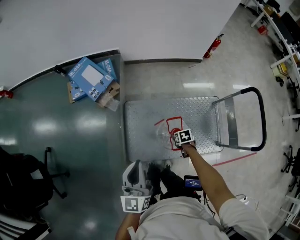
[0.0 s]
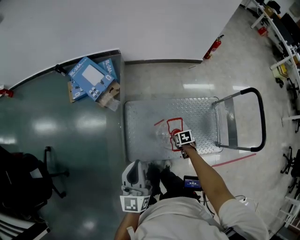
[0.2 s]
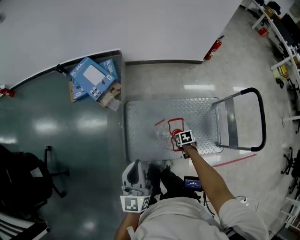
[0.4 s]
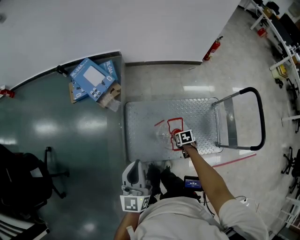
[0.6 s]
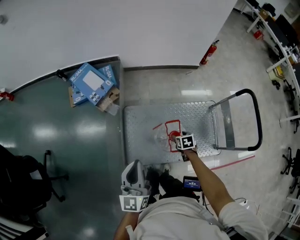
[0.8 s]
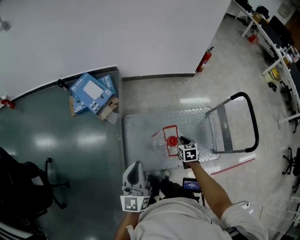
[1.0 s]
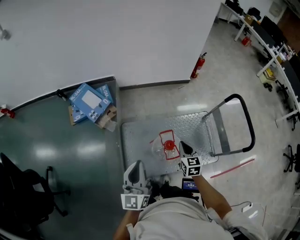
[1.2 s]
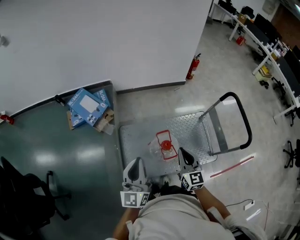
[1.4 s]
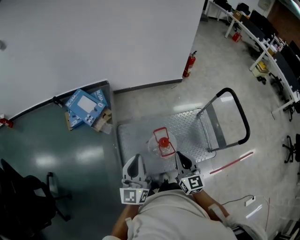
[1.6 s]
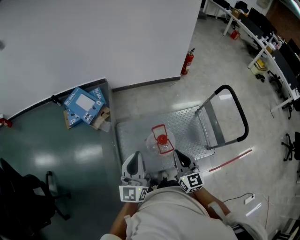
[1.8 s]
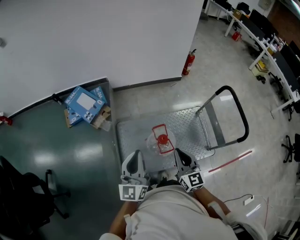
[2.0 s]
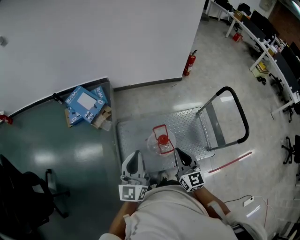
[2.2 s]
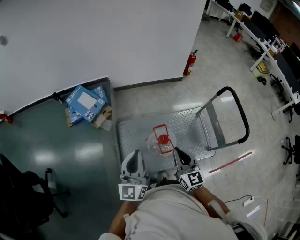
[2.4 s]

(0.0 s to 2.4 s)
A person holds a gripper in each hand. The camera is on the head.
0.0 s - 1.2 s: The left gripper moves roughly 5 cm. The right gripper is displaced upward by roughly 25 cm, points its fingers about 40 degrees further upward, and closes its fingers.
1.2 s - 2.4 s: The right gripper heads upward and backward, covering some 15 cm, and changes its angle by roughly 20 degrees.

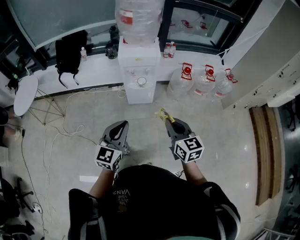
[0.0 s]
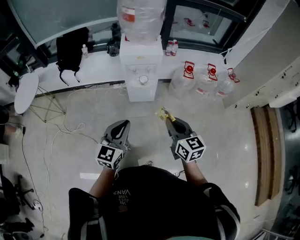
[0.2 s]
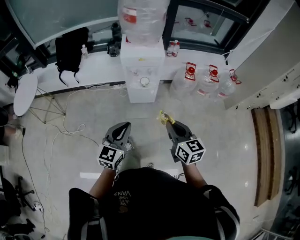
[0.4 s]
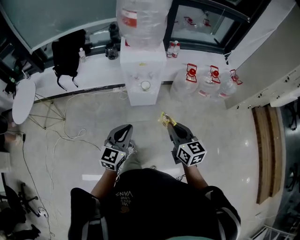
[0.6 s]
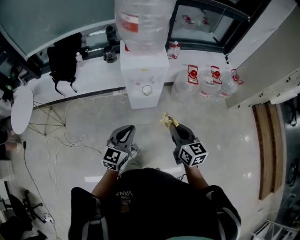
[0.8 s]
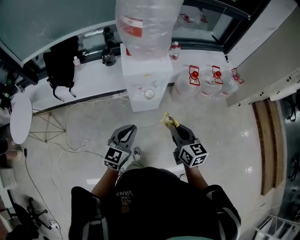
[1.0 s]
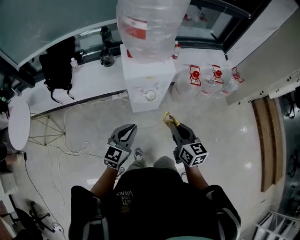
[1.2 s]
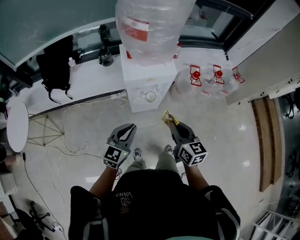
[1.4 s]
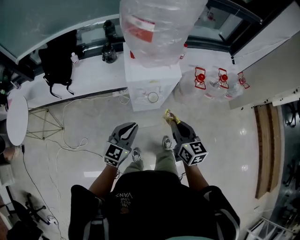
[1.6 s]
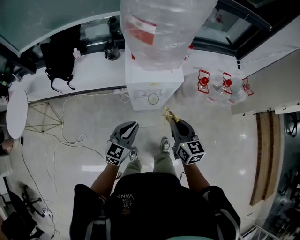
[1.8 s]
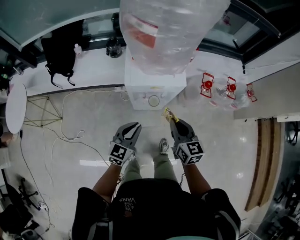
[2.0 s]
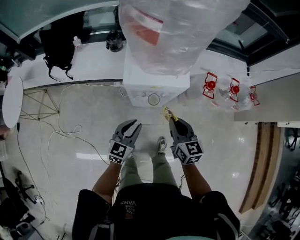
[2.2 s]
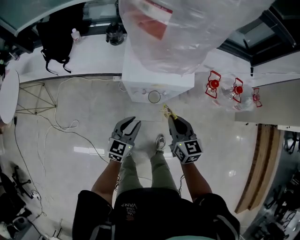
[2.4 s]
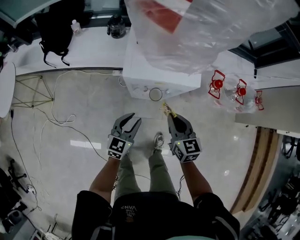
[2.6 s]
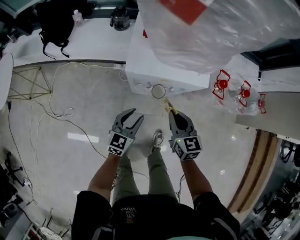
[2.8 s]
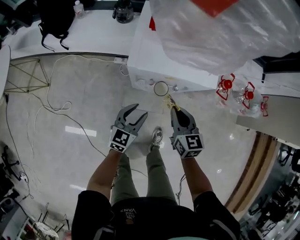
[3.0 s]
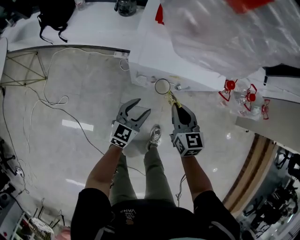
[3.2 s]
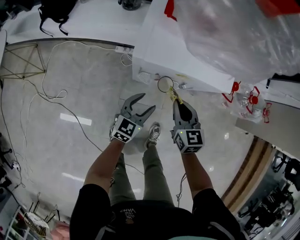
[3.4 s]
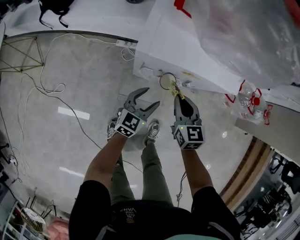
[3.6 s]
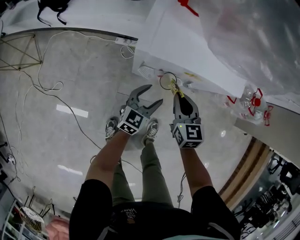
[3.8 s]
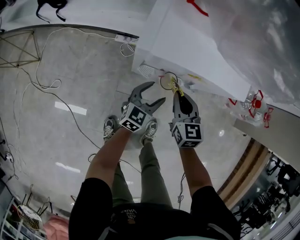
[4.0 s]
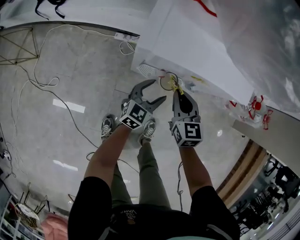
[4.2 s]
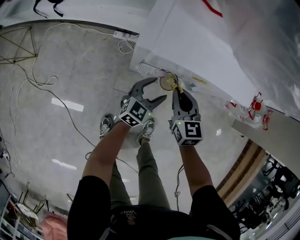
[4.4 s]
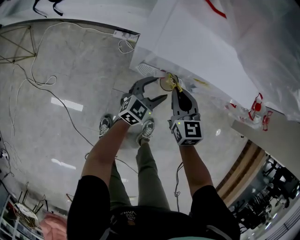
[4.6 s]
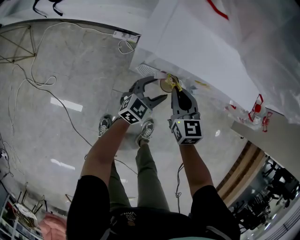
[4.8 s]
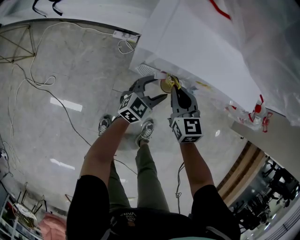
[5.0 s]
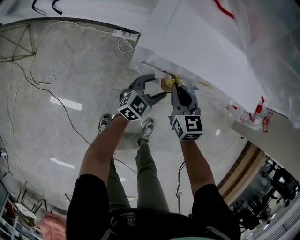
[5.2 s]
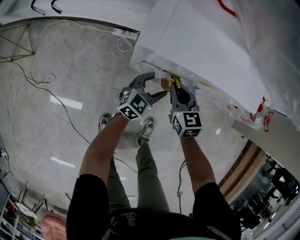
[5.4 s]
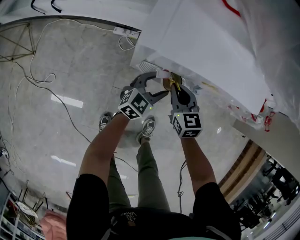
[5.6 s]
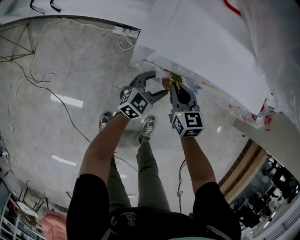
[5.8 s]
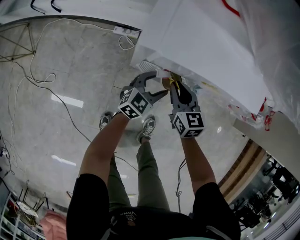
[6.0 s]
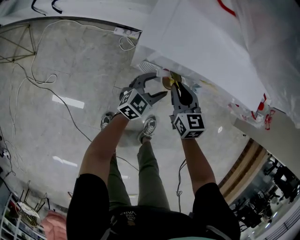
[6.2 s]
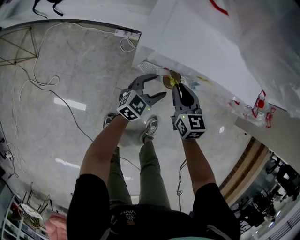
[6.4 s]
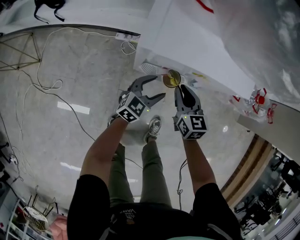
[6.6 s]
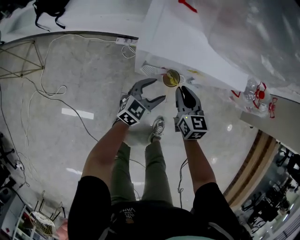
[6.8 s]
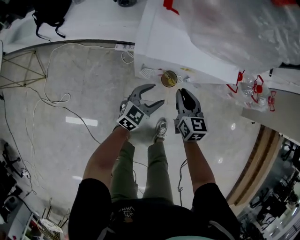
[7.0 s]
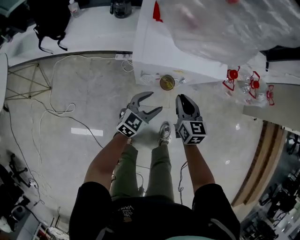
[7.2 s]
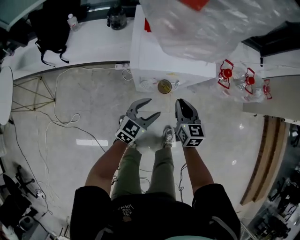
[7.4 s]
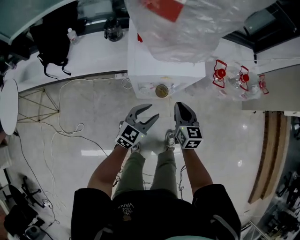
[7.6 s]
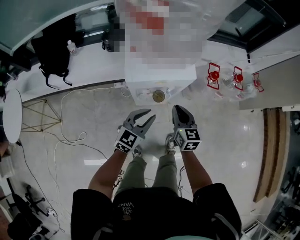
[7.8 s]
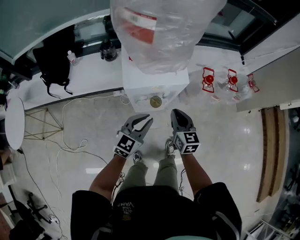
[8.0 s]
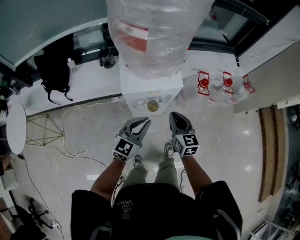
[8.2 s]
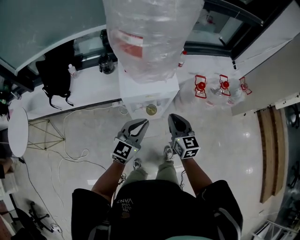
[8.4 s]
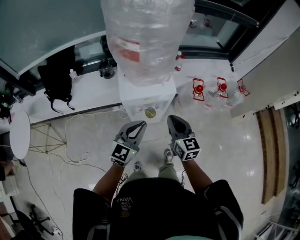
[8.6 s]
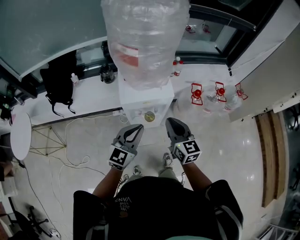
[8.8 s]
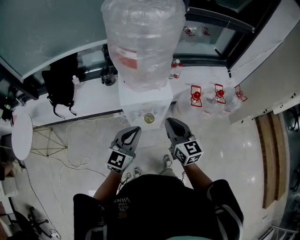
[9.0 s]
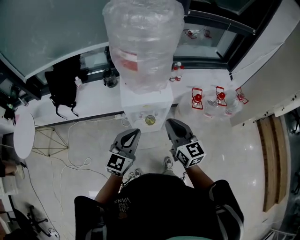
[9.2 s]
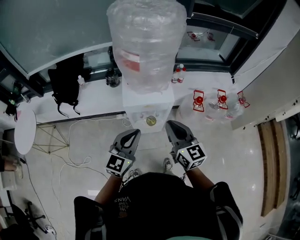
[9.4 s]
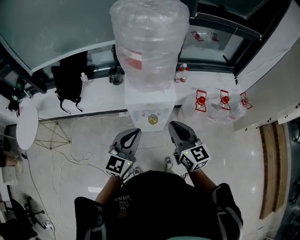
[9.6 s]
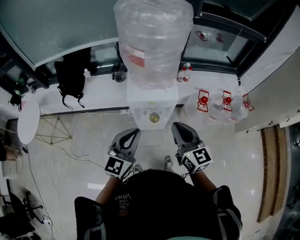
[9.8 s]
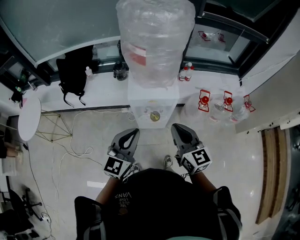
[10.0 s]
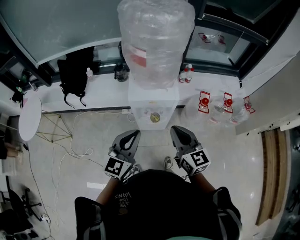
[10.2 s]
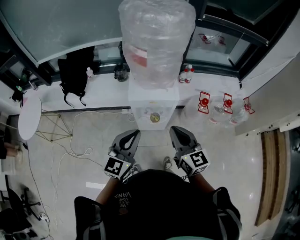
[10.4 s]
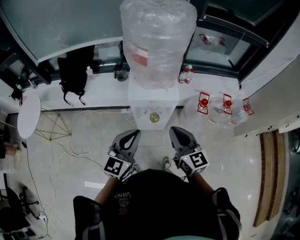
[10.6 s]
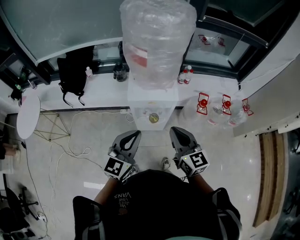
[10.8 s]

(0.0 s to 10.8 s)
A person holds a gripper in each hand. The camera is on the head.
0.0 s - 1.6 s: The left gripper shifts roughly 35 cm forward. Meanwhile the right gripper shifts roughly 35 cm forward and to the left.
1.6 s - 3.0 s: Both grippers move downward and forward, some 30 cm. The left gripper opens.
3.0 s - 4.6 s: Both grippers travel together downward and forward, some 15 cm. The left gripper opens its fingers.
6.2 s - 7.8 s: The grippers both shift upward by some 30 cm. The right gripper changes its angle by some 30 degrees. Meanwhile the left gripper closes its fingers.
7.8 s - 9.2 s: The two grippers go approximately 25 cm upward.
9.2 s - 10.8 s: The right gripper ends up roughly 5 cm from where it was, while the left gripper changes place by about 5 cm.

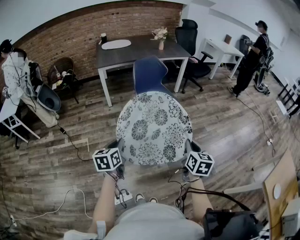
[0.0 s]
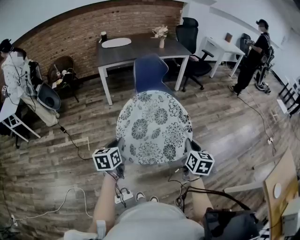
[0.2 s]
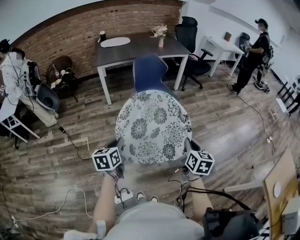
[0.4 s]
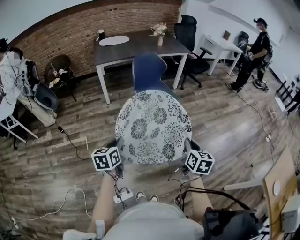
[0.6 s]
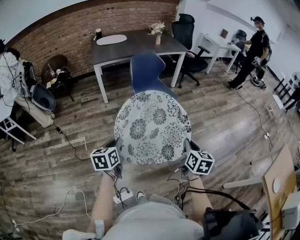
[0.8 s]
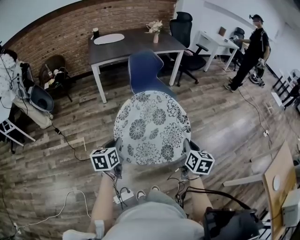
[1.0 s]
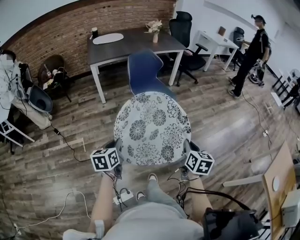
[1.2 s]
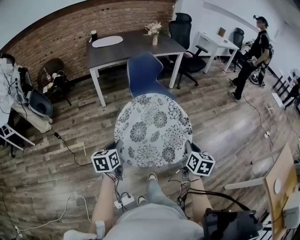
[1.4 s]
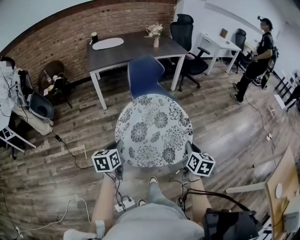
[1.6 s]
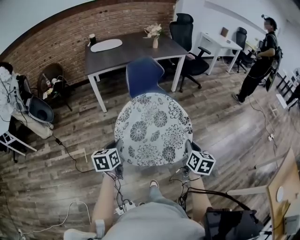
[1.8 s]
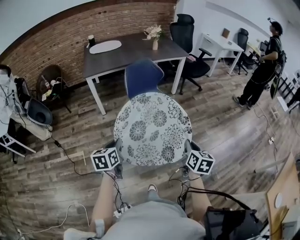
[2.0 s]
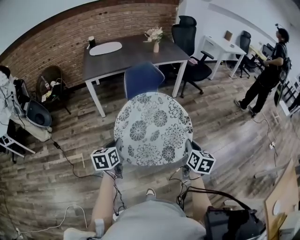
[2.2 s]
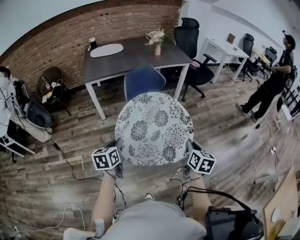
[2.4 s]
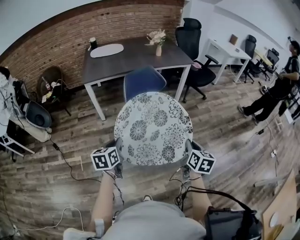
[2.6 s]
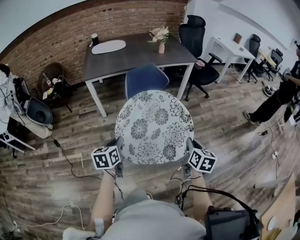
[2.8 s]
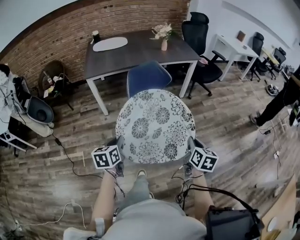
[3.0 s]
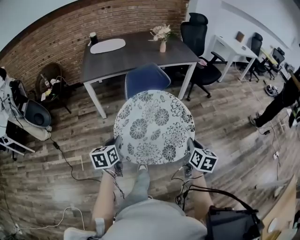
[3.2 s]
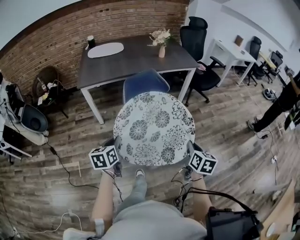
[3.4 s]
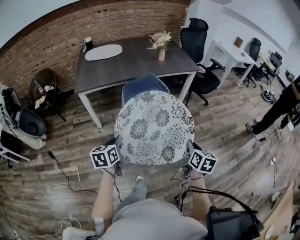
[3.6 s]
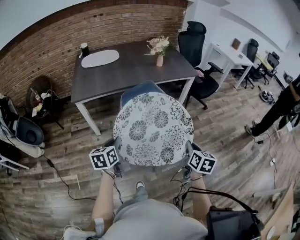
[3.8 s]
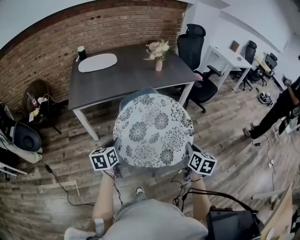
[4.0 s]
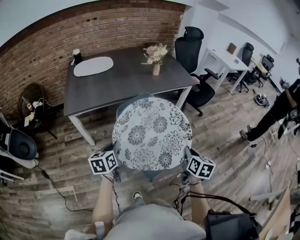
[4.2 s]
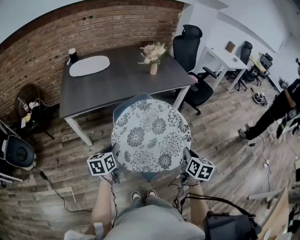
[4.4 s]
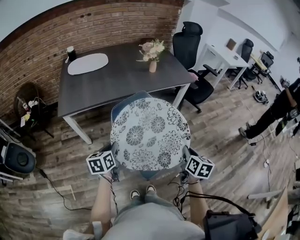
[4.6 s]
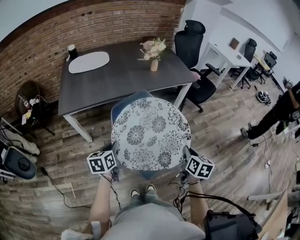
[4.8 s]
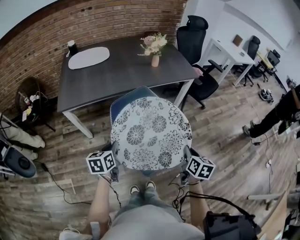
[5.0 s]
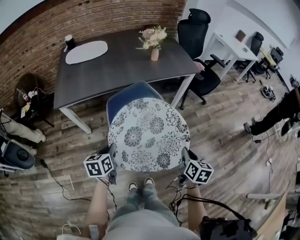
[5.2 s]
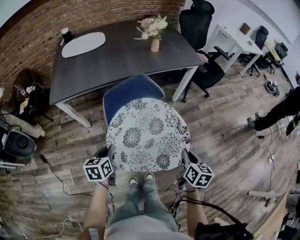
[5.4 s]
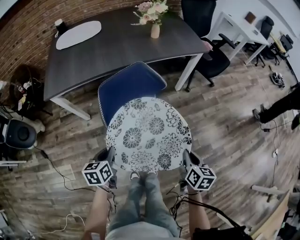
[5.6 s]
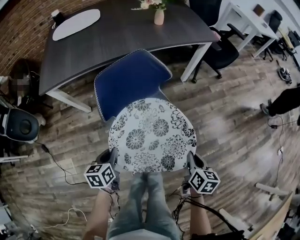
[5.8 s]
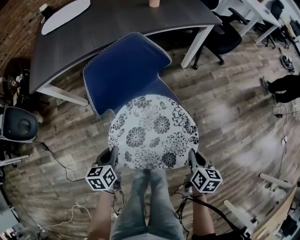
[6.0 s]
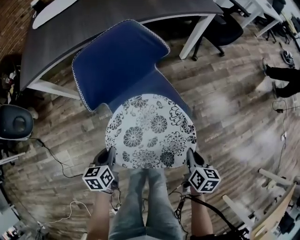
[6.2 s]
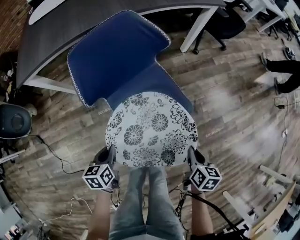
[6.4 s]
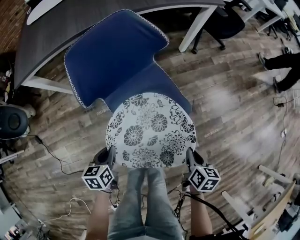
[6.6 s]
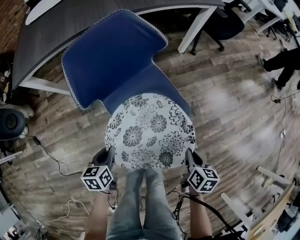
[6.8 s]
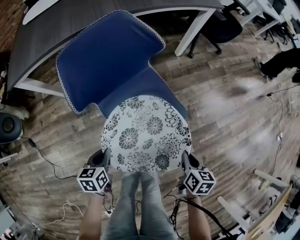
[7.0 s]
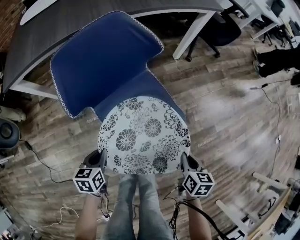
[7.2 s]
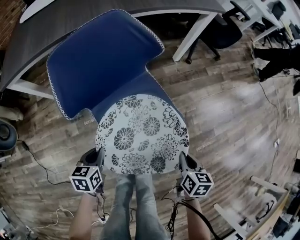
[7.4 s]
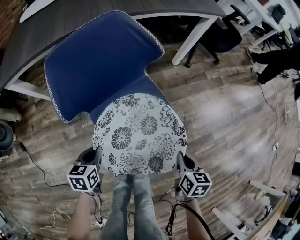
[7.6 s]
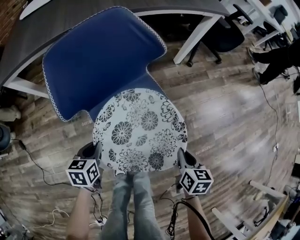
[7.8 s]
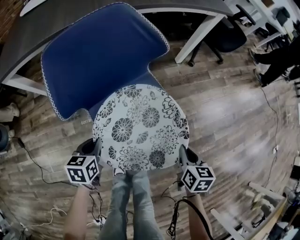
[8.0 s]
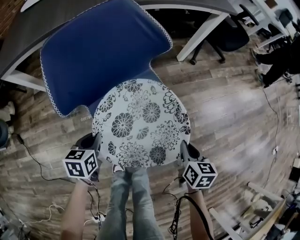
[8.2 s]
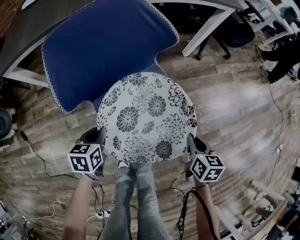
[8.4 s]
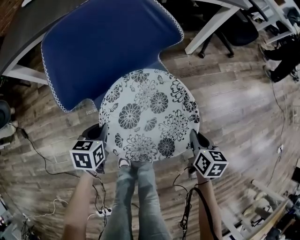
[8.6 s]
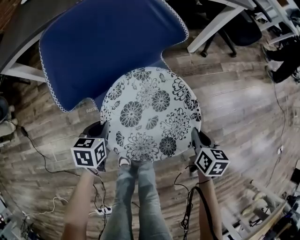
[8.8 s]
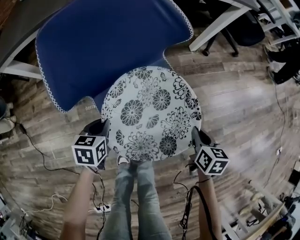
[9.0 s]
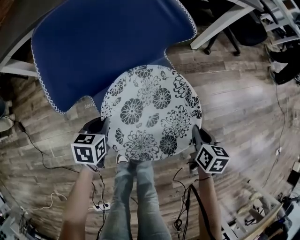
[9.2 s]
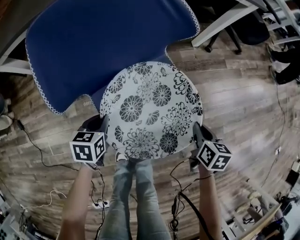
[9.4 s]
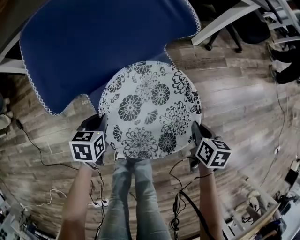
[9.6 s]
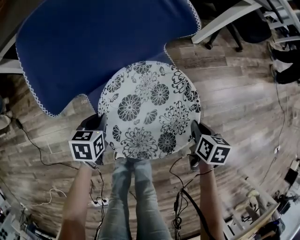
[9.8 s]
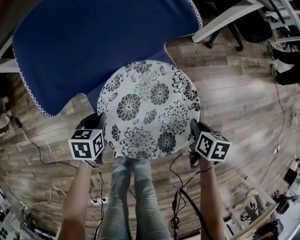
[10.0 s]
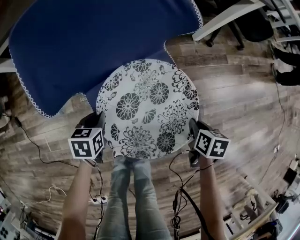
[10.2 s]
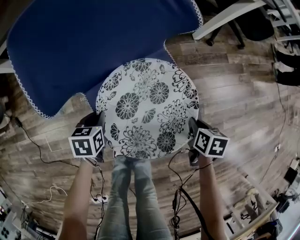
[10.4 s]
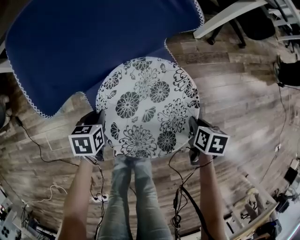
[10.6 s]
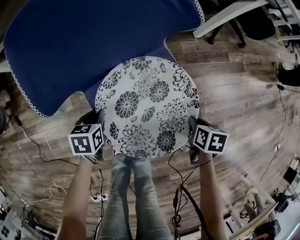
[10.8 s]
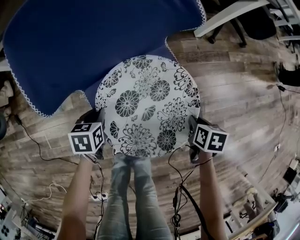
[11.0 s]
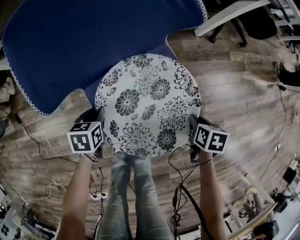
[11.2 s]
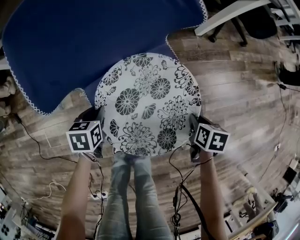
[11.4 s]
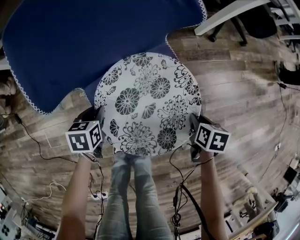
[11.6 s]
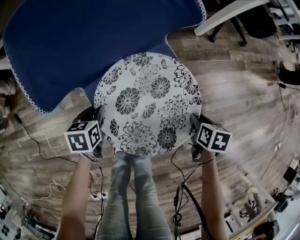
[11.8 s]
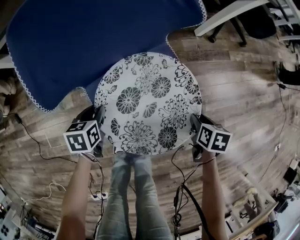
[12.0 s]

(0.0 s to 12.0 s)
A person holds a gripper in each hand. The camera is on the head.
0.0 s - 1.6 s: Both grippers travel together upward, roughly 10 cm.
1.6 s - 3.0 s: Both grippers move upward, about 25 cm.
3.0 s - 4.4 s: The grippers both shift upward by roughly 30 cm.
4.4 s - 6.0 s: The right gripper goes forward and backward, about 15 cm each way, reversing 3 times; the left gripper swings forward and backward, about 15 cm each way, with 3 reversals.
6.0 s - 7.6 s: The left gripper moves some 10 cm forward and comes back.
7.6 s - 9.0 s: The grippers move only a little.
9.0 s - 10.4 s: The right gripper goes about 5 cm forward.
10.4 s - 12.0 s: The right gripper opens its fingers, while the left gripper opens its fingers.
